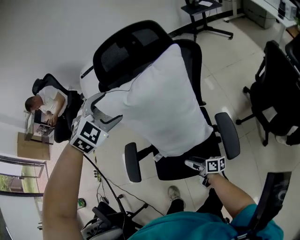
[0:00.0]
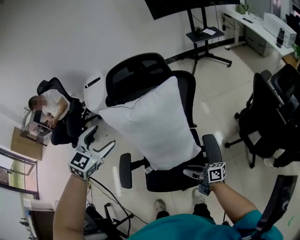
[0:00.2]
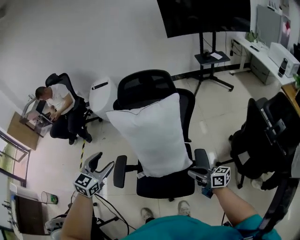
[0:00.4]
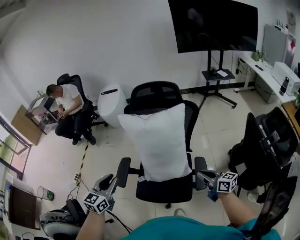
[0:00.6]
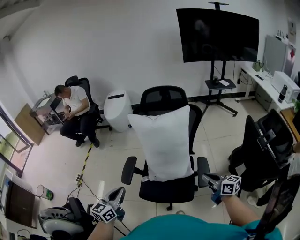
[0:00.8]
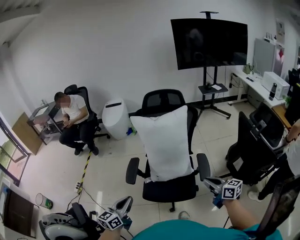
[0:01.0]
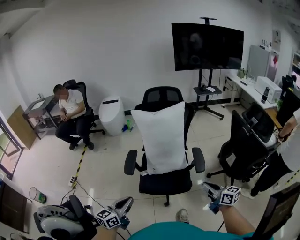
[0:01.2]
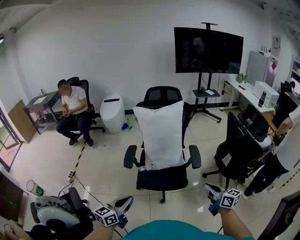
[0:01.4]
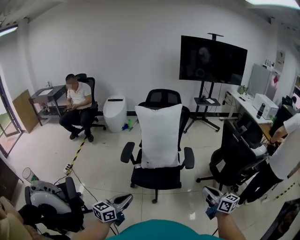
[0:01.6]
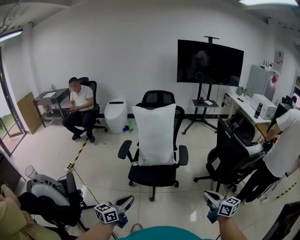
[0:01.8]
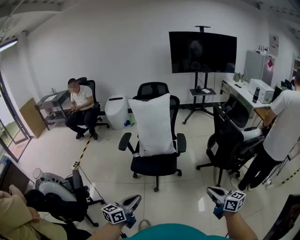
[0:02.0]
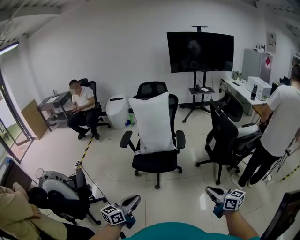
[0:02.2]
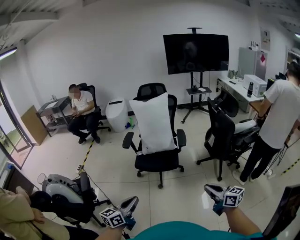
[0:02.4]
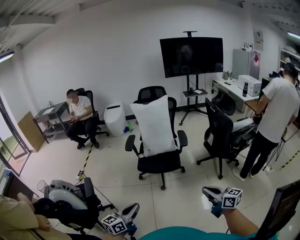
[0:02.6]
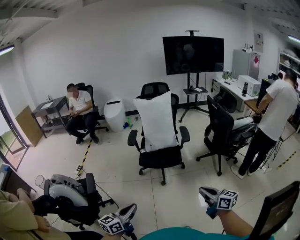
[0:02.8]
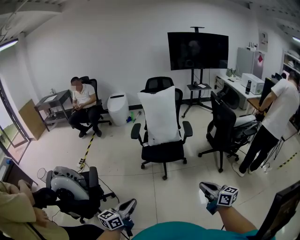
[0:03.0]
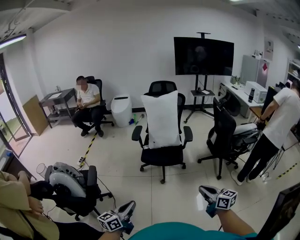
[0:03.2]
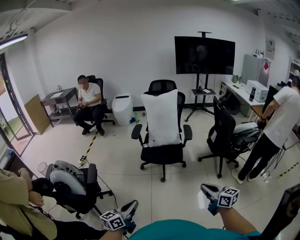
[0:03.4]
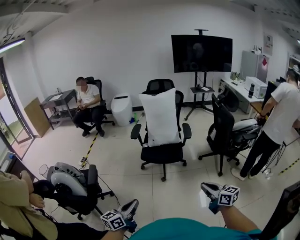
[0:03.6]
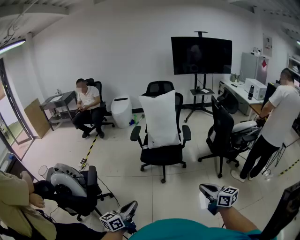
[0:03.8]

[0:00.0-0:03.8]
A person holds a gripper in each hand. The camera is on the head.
0:00.0 to 0:01.2: The left gripper goes approximately 60 cm backward and to the left, rotates around the line of its fingers by some 70 degrees, counterclockwise from behind, and closes up. Meanwhile the right gripper shifts approximately 40 cm upward and backward, rotates around the line of its fingers by some 40 degrees, counterclockwise from behind, and closes up.
0:01.2 to 0:02.6: The pair of grippers is taken backward, some 40 cm.
0:02.6 to 0:03.8: The left gripper shifts roughly 10 cm backward.

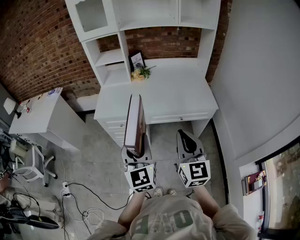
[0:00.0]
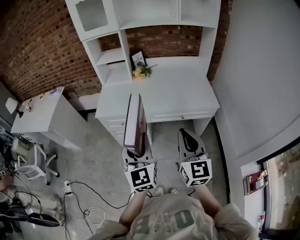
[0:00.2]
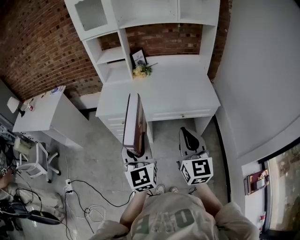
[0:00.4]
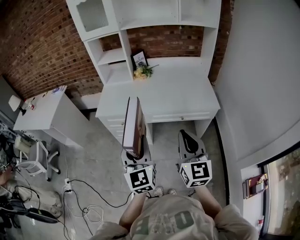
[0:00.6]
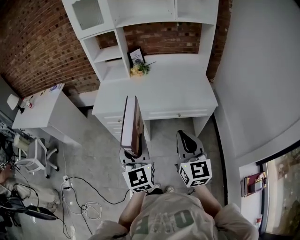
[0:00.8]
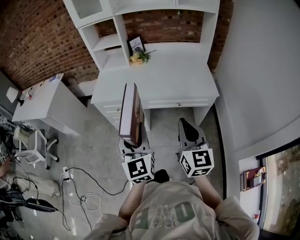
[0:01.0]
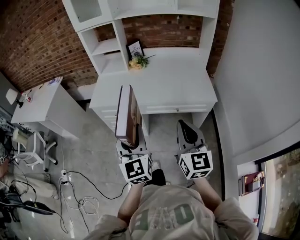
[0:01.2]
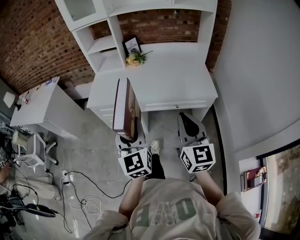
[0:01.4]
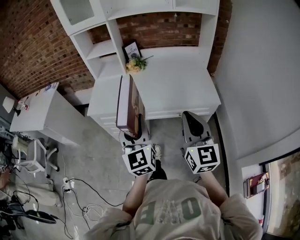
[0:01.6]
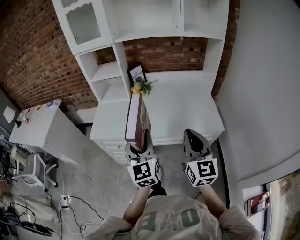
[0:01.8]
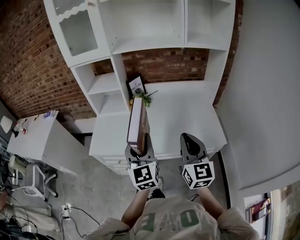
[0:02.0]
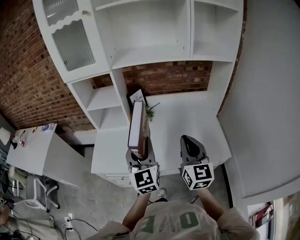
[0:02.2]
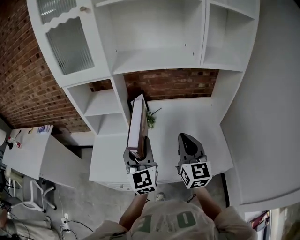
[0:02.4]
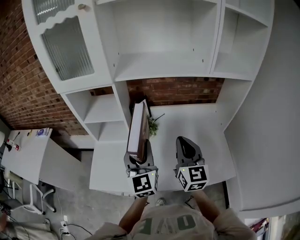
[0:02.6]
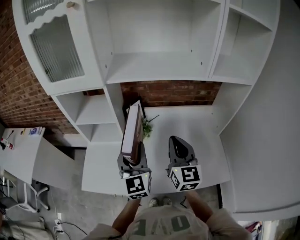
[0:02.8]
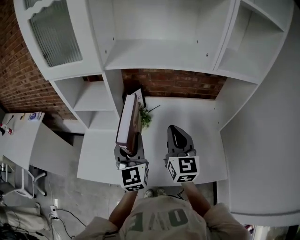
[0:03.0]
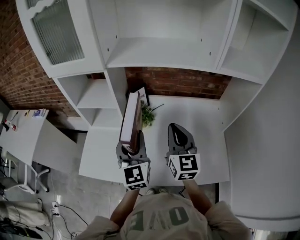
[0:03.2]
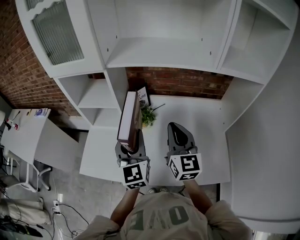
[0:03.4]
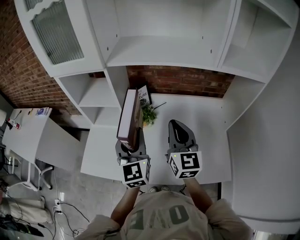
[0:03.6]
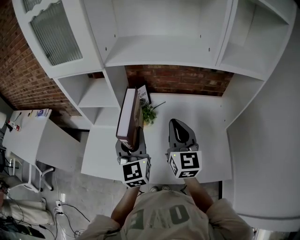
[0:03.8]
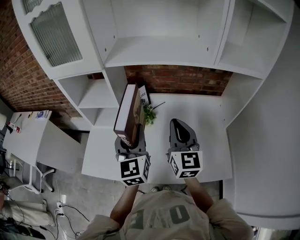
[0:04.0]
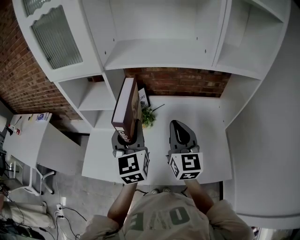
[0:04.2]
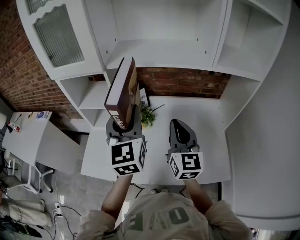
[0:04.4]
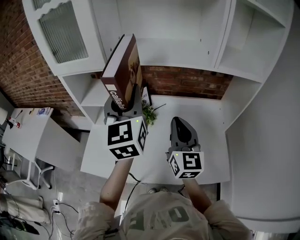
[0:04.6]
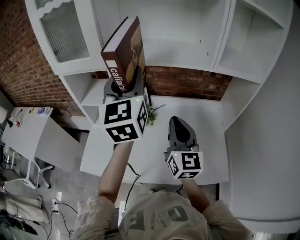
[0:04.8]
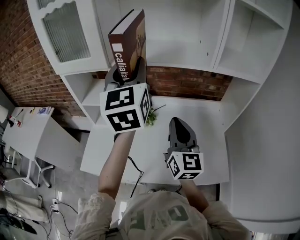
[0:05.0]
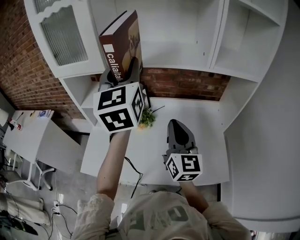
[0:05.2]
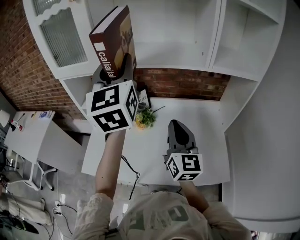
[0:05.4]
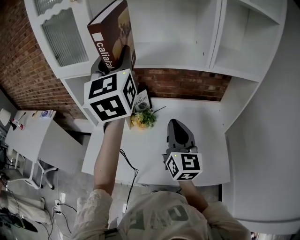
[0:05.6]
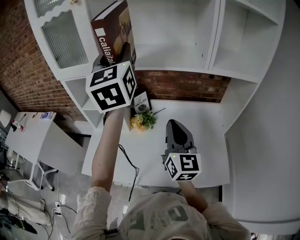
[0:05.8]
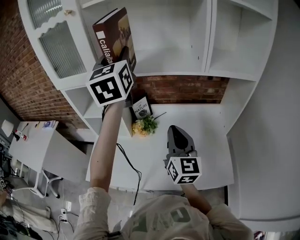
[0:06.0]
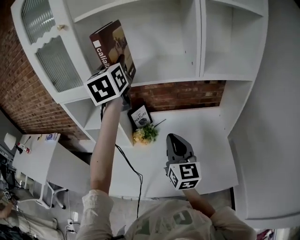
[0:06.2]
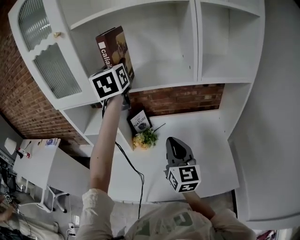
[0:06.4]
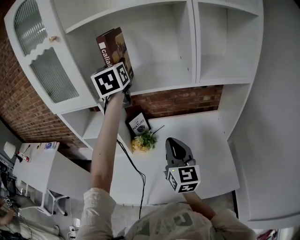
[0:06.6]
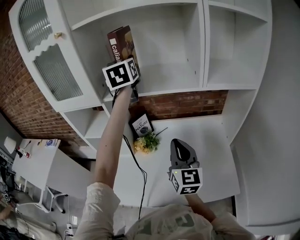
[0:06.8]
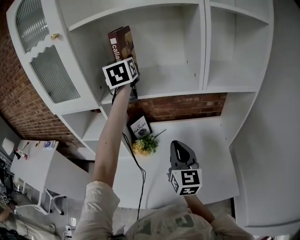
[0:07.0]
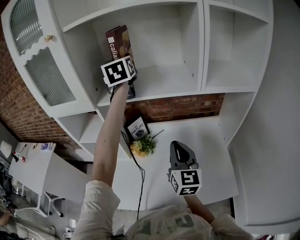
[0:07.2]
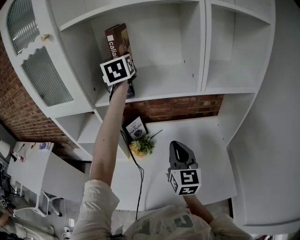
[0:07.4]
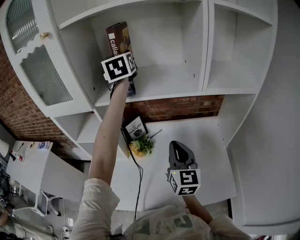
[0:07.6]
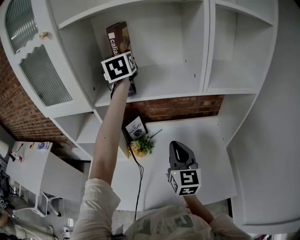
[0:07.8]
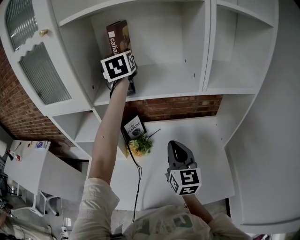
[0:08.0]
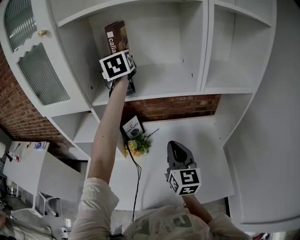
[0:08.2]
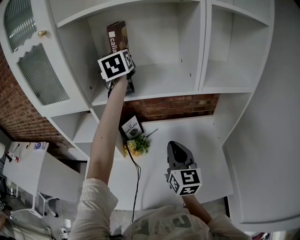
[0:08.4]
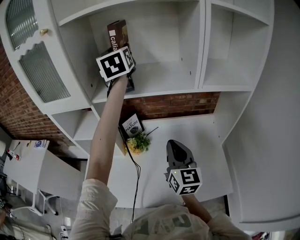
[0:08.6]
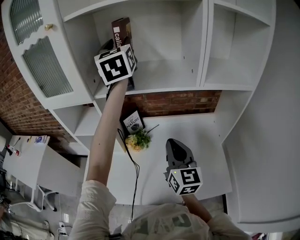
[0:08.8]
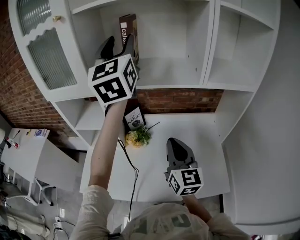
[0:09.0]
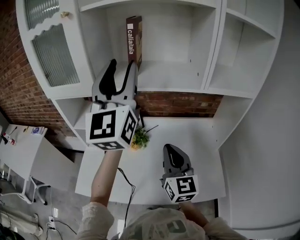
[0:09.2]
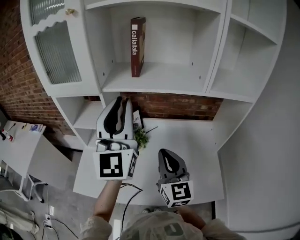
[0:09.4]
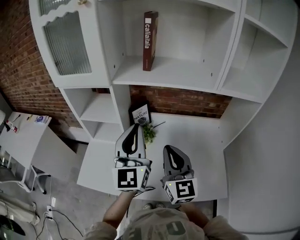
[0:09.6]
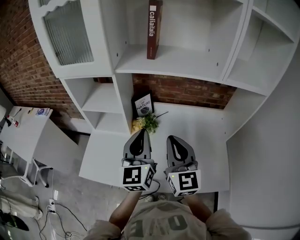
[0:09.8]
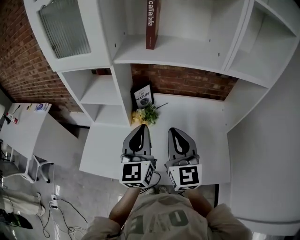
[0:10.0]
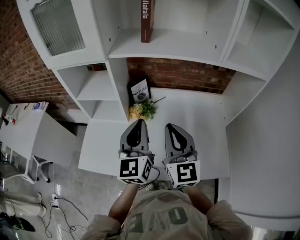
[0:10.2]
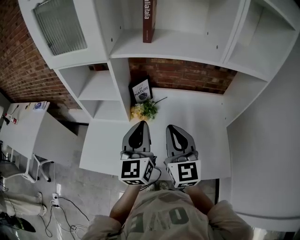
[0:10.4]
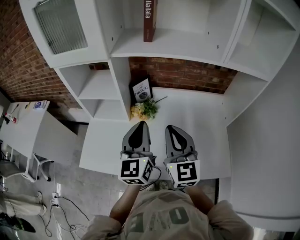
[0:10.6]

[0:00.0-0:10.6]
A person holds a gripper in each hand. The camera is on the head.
0:00.0 to 0:01.6: The right gripper goes approximately 10 cm to the right and forward, while the left gripper shifts about 10 cm forward and to the right.
0:01.6 to 0:03.0: The two grippers travel together, forward, roughly 40 cm.
0:03.0 to 0:04.6: The left gripper heads upward, covering some 15 cm.
0:04.6 to 0:06.0: The left gripper travels upward and forward by some 15 cm.
0:06.0 to 0:07.6: The right gripper goes some 5 cm forward. Meanwhile the left gripper shifts about 20 cm forward.
0:07.6 to 0:09.0: The left gripper heads backward and upward, covering roughly 15 cm, and swivels some 20 degrees; the right gripper ends up approximately 5 cm from where it was.
0:09.0 to 0:10.6: The right gripper moves to the left, approximately 5 cm; the left gripper heads downward and backward, covering some 40 cm, turns by approximately 20 degrees, and closes.

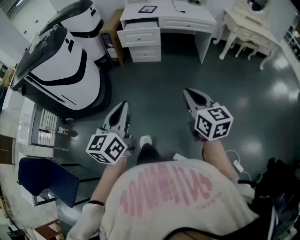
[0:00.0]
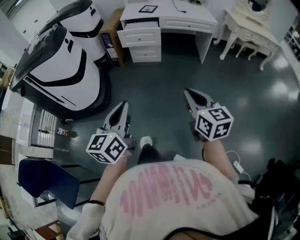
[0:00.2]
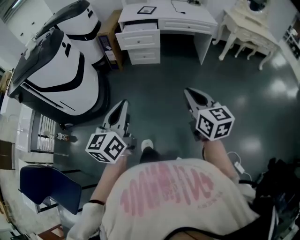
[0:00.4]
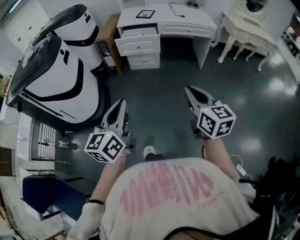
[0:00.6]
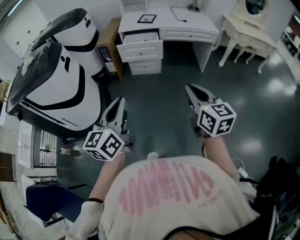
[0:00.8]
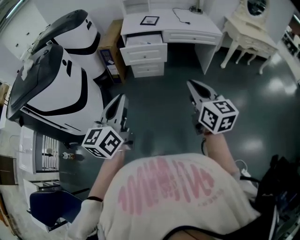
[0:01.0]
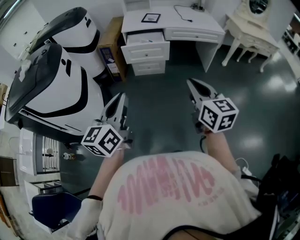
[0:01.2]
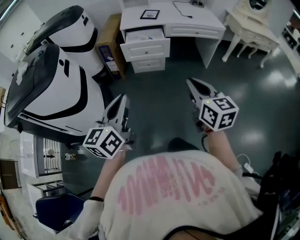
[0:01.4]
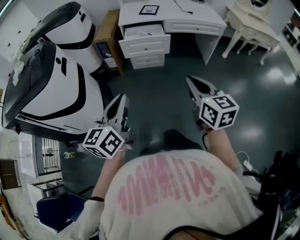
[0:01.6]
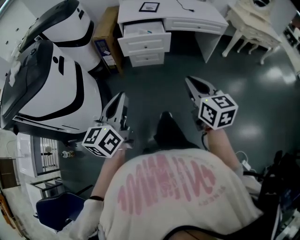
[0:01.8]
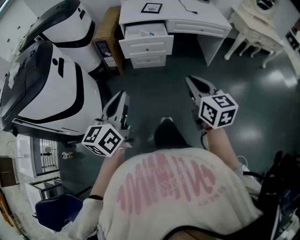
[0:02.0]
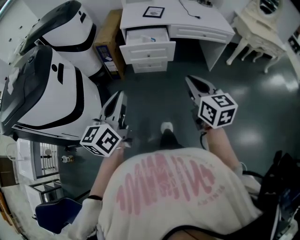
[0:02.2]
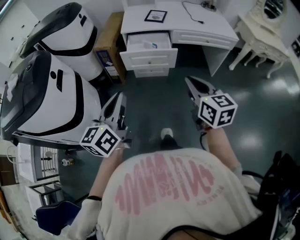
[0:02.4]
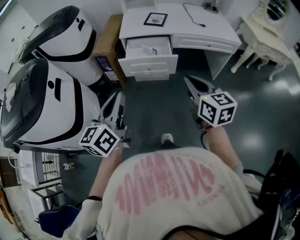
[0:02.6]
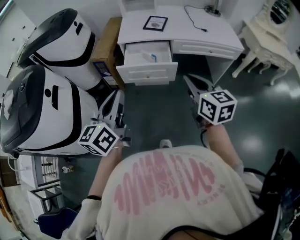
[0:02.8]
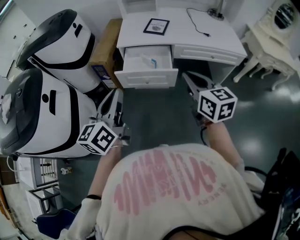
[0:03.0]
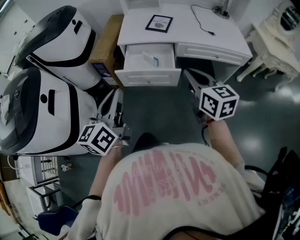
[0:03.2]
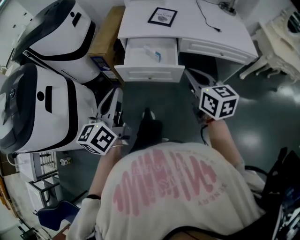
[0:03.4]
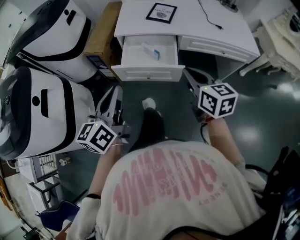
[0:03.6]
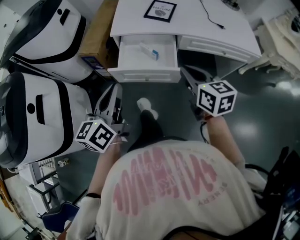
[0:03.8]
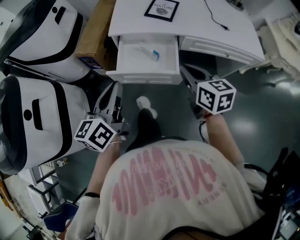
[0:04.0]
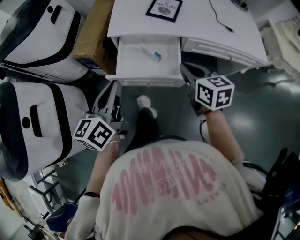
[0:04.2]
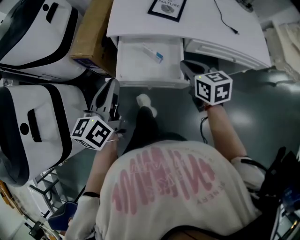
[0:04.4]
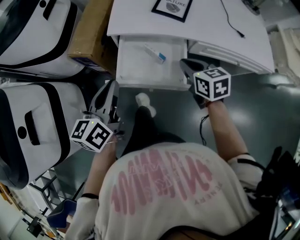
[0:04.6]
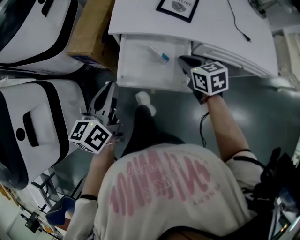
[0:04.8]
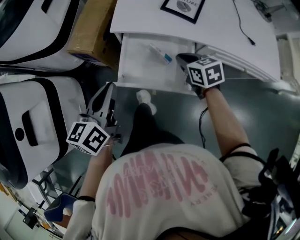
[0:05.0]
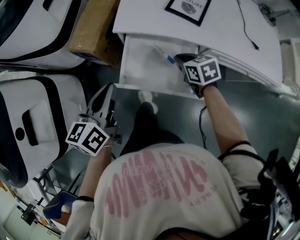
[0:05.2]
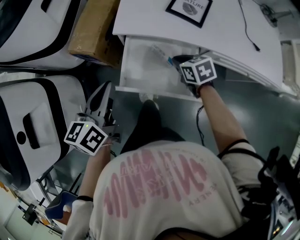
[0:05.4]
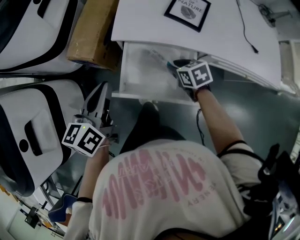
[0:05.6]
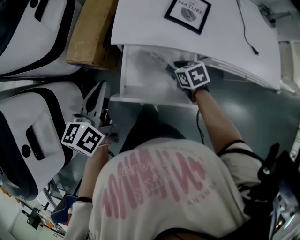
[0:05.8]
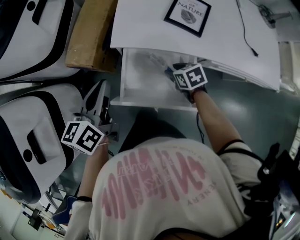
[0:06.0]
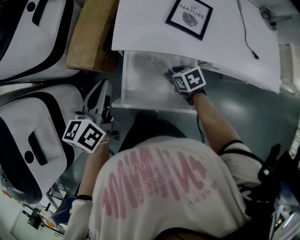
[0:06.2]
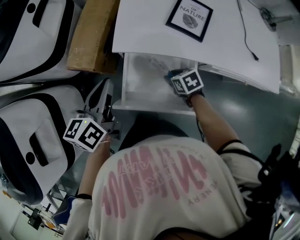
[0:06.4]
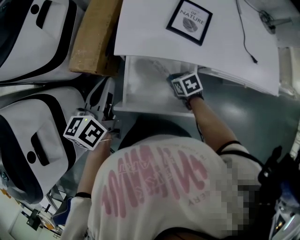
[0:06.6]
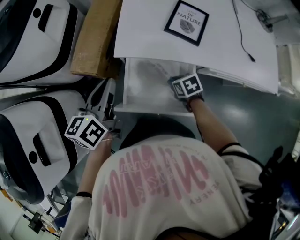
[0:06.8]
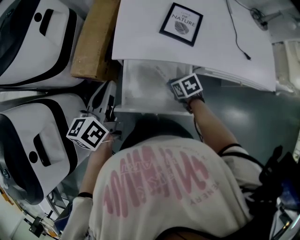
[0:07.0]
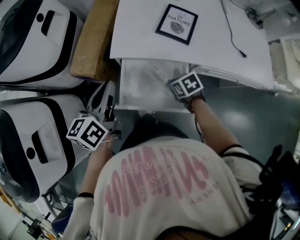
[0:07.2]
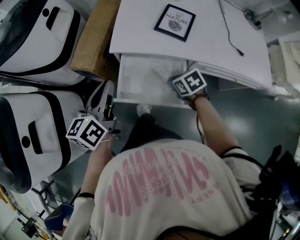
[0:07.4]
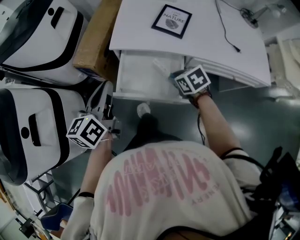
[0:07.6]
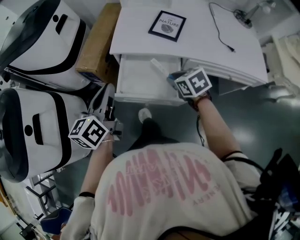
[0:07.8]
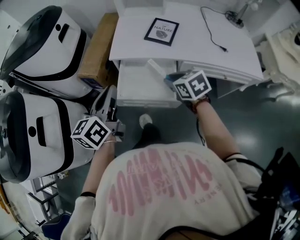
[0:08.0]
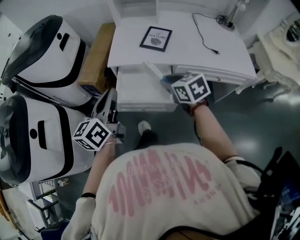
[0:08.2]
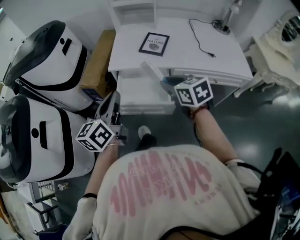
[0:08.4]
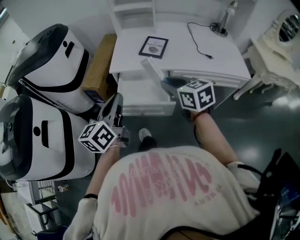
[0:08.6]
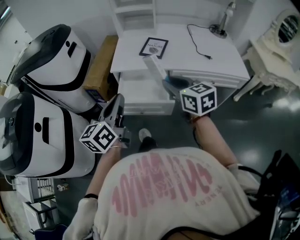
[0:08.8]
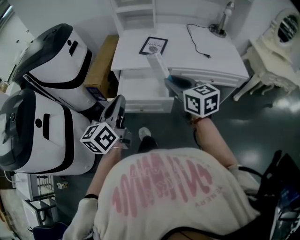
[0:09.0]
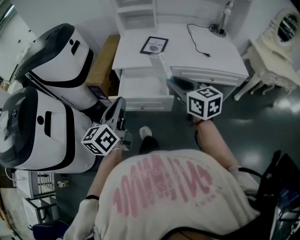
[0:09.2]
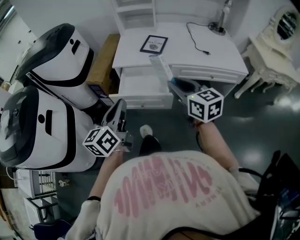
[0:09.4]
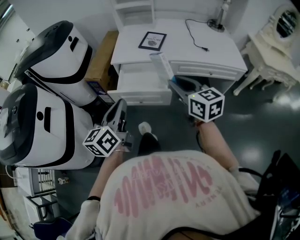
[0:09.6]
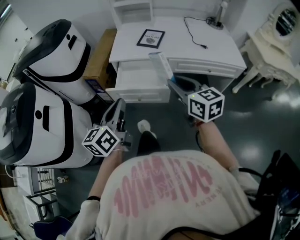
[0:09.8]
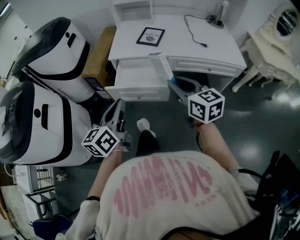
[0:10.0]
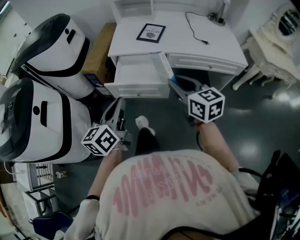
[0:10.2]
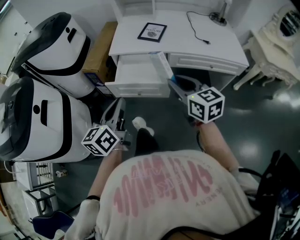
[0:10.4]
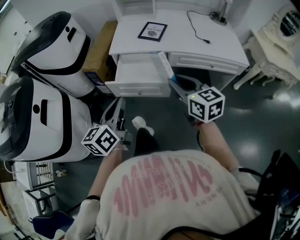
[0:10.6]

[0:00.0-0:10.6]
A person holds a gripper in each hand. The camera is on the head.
0:00.0 to 0:01.6: The two grippers go some 30 cm forward and to the left.
0:01.6 to 0:03.0: The two grippers go some 35 cm forward.
0:03.0 to 0:04.6: Both grippers travel together forward and downward, roughly 30 cm. The right gripper swivels some 30 degrees.
0:04.6 to 0:06.0: The left gripper moves forward, roughly 10 cm; the right gripper travels downward and forward by approximately 15 cm, turns by roughly 20 degrees, and opens.
0:06.0 to 0:07.6: The left gripper goes approximately 10 cm backward; the right gripper is displaced upward and backward by about 10 cm, and closes up.
0:07.6 to 0:09.0: The left gripper moves backward, upward and to the right, roughly 20 cm. The right gripper travels upward and backward by some 30 cm, and tips its fingers upward by approximately 40 degrees.
0:09.0 to 0:10.6: Both grippers travel together backward, some 5 cm.
